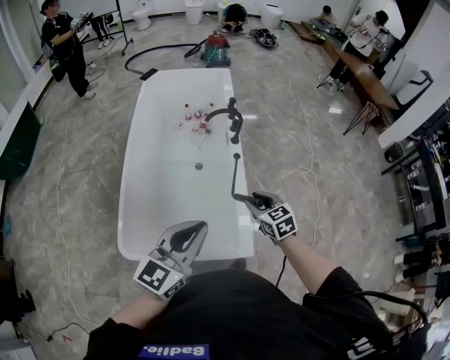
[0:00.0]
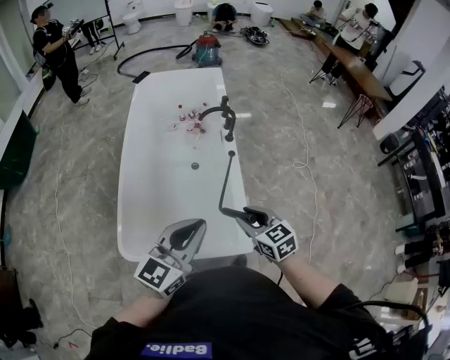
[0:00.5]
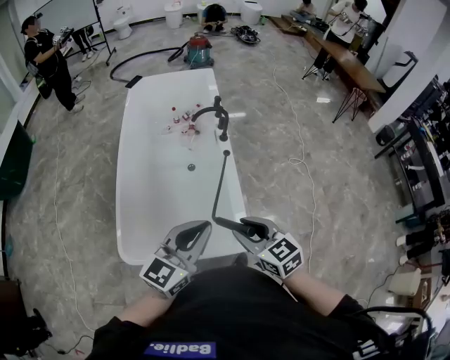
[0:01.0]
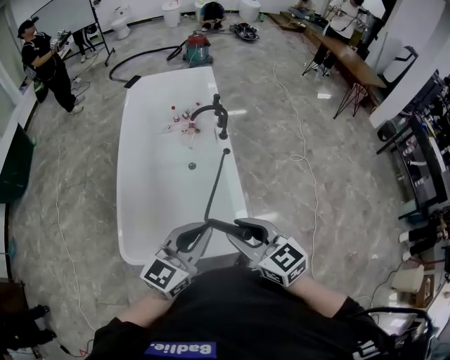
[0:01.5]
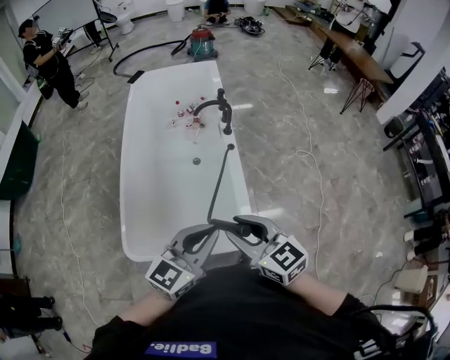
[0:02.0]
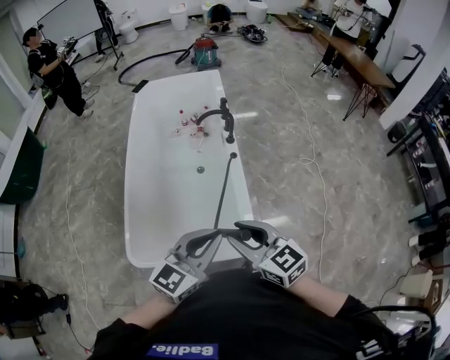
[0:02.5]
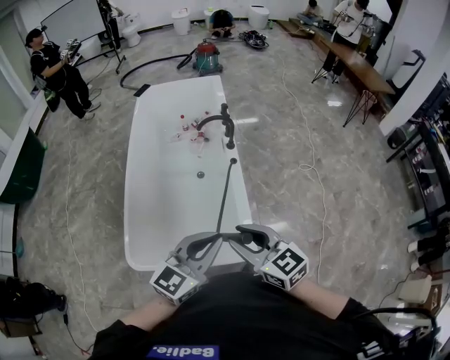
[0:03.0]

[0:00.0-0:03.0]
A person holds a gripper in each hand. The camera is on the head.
0:00.0 to 0:01.5: The right gripper moves upward and backward, some 20 cm.
0:01.5 to 0:03.0: The grippers stay close to where they were, moving slightly.

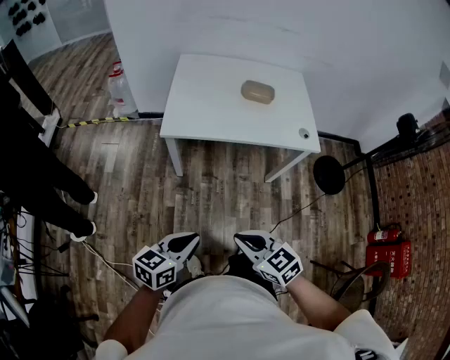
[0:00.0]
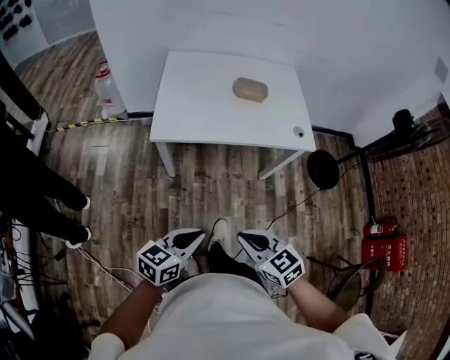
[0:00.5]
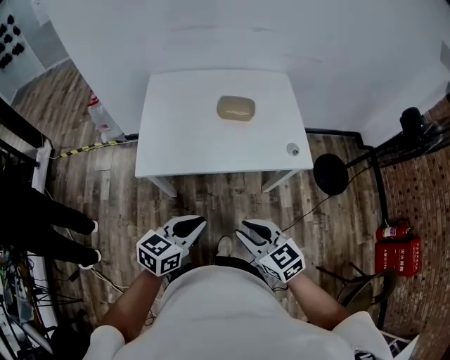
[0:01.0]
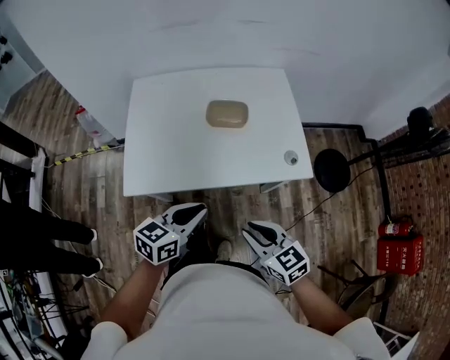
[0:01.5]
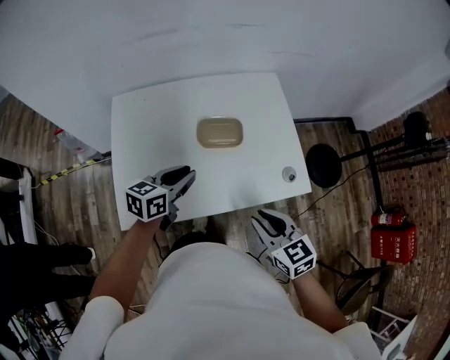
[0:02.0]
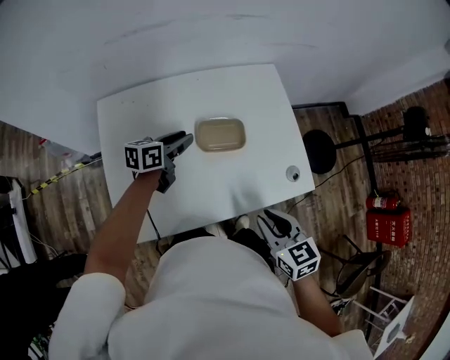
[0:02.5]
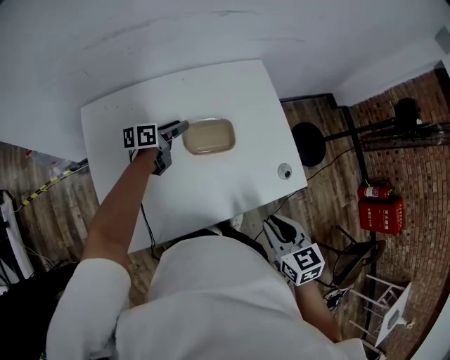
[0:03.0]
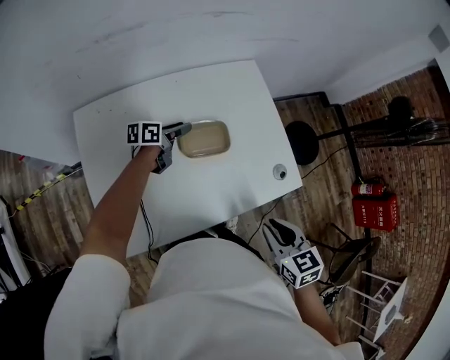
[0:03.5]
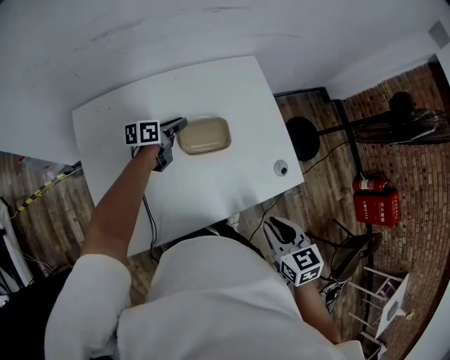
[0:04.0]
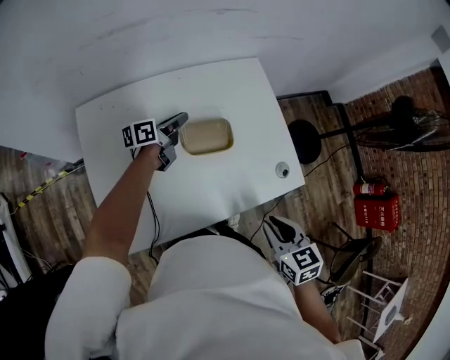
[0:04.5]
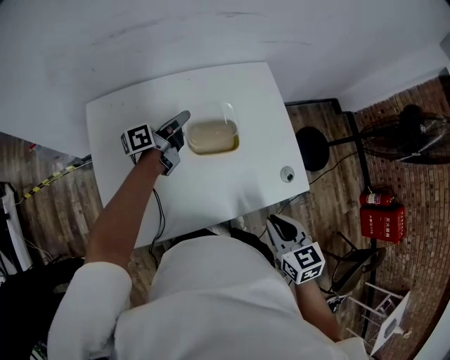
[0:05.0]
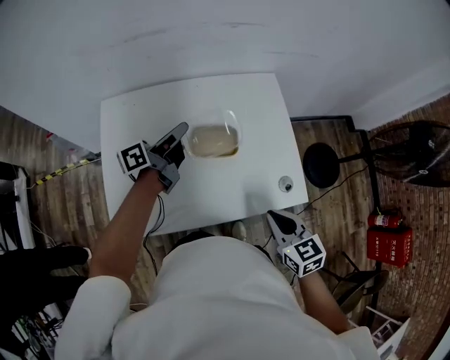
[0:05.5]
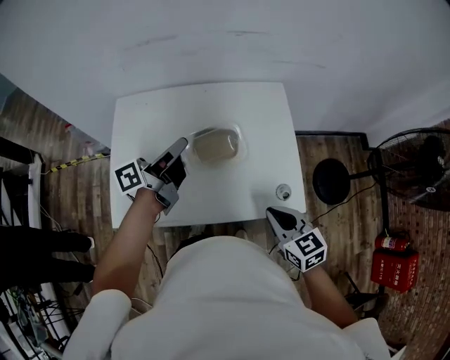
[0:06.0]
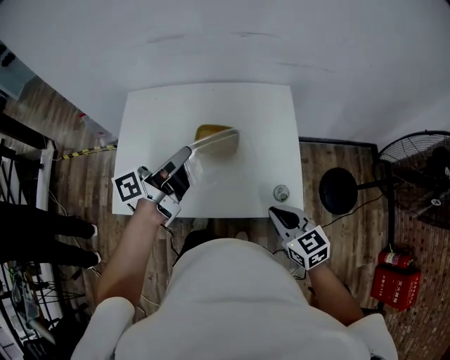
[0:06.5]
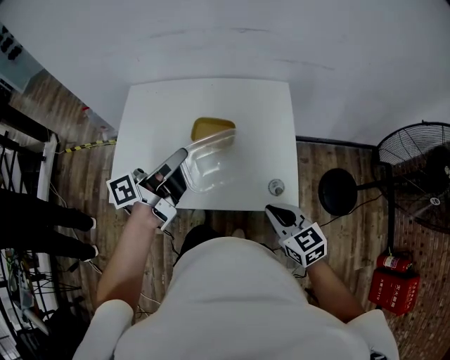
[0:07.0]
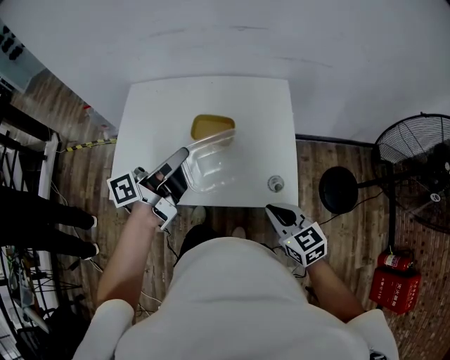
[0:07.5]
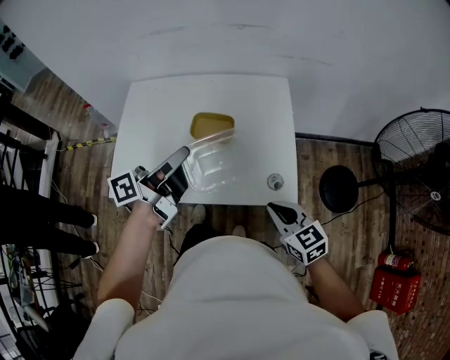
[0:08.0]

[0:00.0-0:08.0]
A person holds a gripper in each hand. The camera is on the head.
0:00.0 to 0:02.0: The pair of grippers is taken forward, approximately 50 cm. The right gripper changes its angle by roughly 30 degrees, and opens.
0:02.0 to 0:04.0: The left gripper shifts approximately 25 cm forward and downward, rotates roughly 20 degrees, and opens and closes again. Meanwhile the right gripper swivels about 20 degrees.
0:04.0 to 0:06.0: The left gripper heads upward, covering roughly 20 cm, and rotates about 40 degrees; the right gripper shifts by some 10 cm, and swivels approximately 30 degrees.
0:06.0 to 0:08.0: The right gripper shifts about 5 cm to the right; the left gripper travels backward and to the right by some 15 cm.

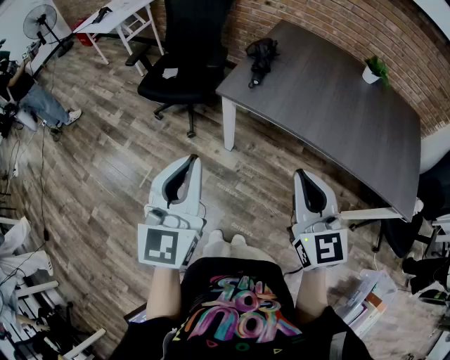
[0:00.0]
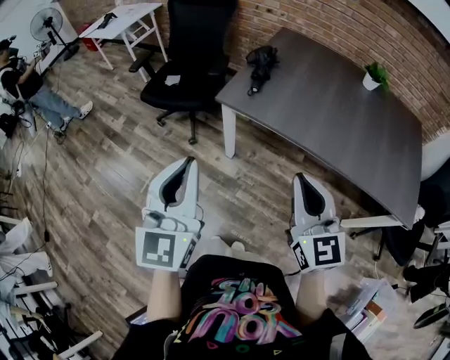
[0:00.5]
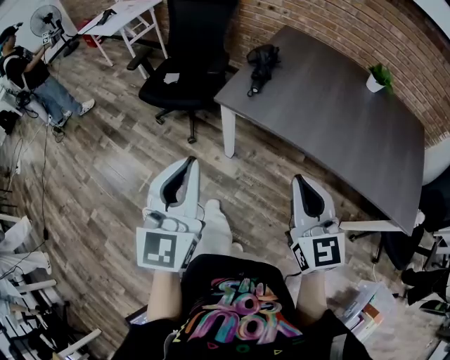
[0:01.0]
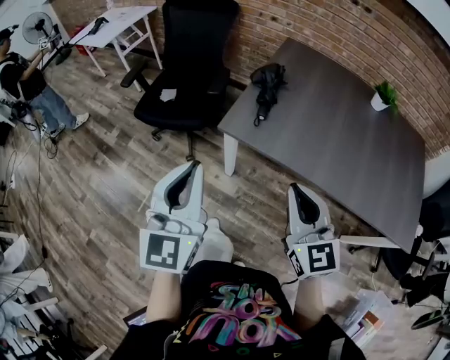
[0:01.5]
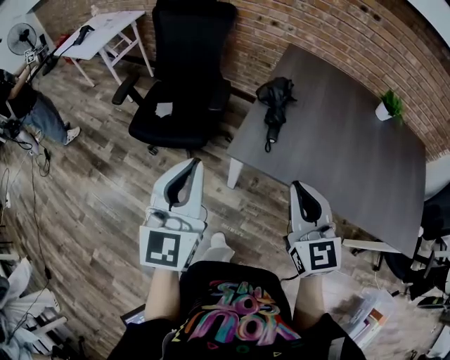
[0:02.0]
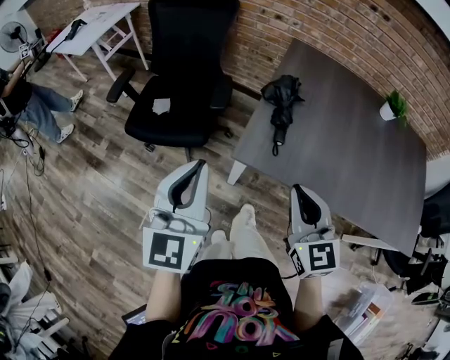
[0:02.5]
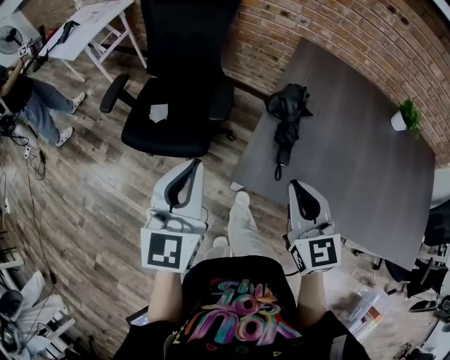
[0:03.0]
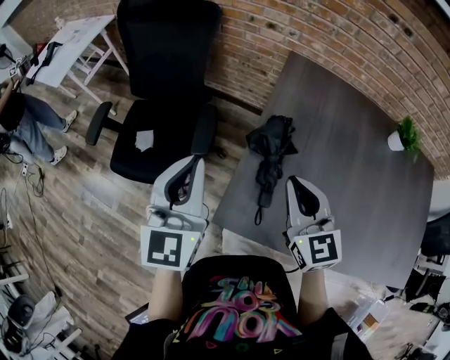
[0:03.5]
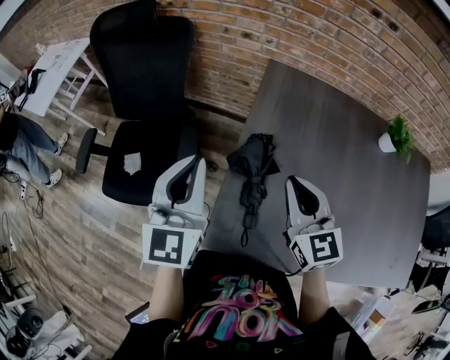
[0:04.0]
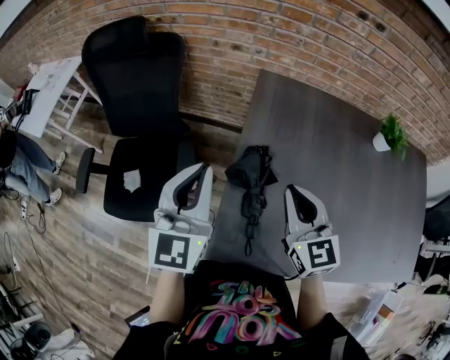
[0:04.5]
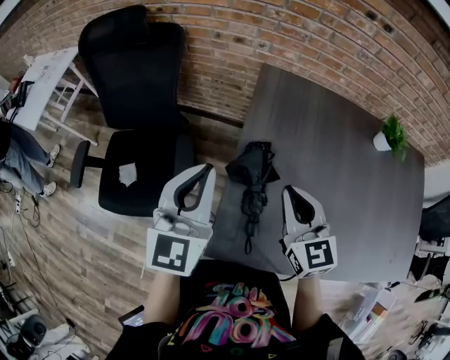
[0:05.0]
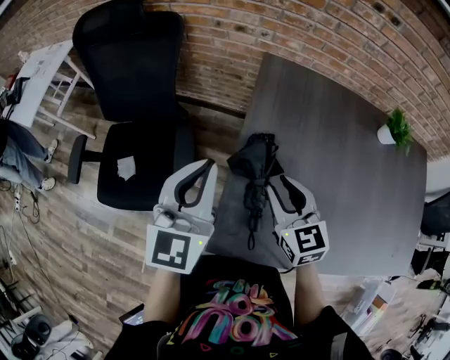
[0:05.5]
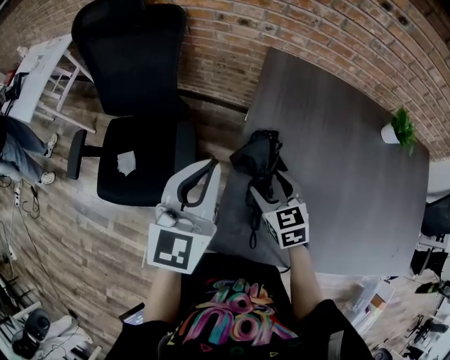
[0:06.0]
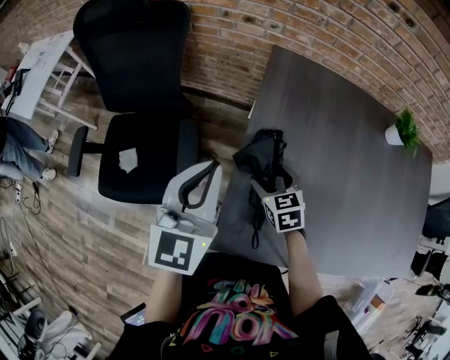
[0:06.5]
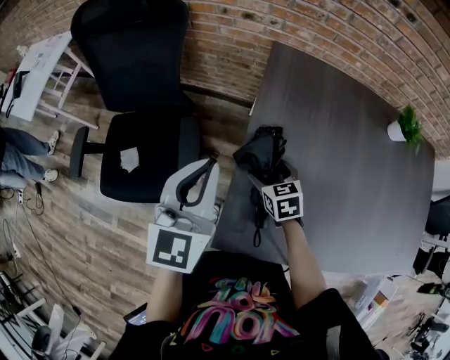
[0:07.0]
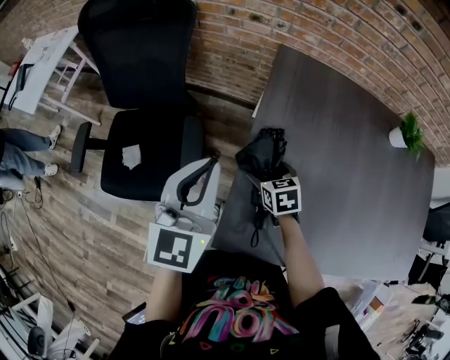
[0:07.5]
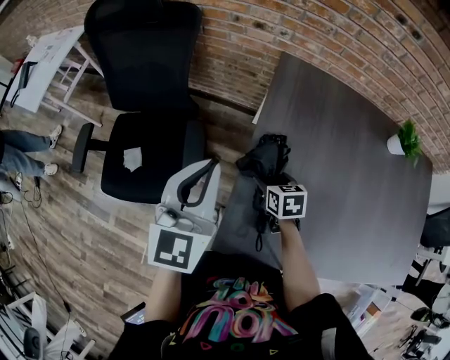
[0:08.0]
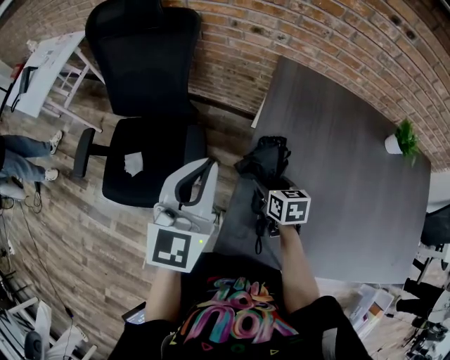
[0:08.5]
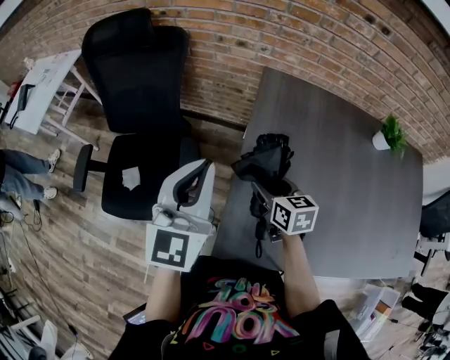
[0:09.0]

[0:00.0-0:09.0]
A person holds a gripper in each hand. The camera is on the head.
0:00.0 to 0:02.0: Both grippers travel together forward, about 25 cm.
0:02.0 to 0:04.5: The grippers both shift forward by some 35 cm.
0:04.5 to 0:07.0: The right gripper travels downward by roughly 25 cm, tips its fingers downward by about 30 degrees, and opens up; the left gripper goes some 5 cm downward.
0:07.0 to 0:09.0: The left gripper heads upward, covering roughly 5 cm. The right gripper is displaced upward by about 10 cm.

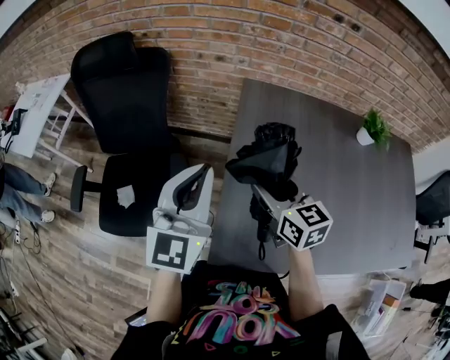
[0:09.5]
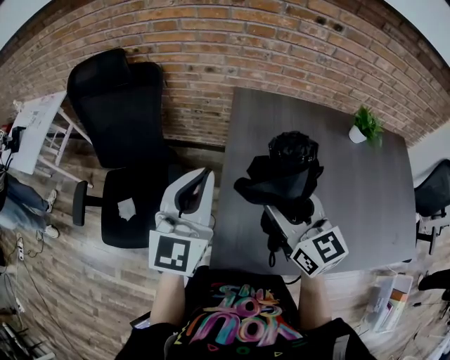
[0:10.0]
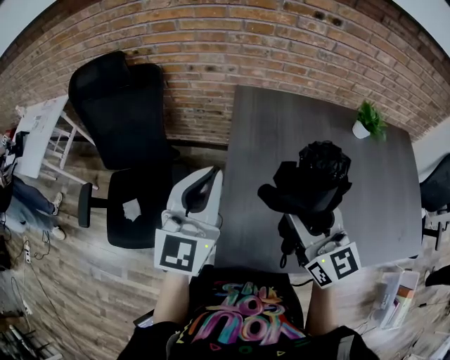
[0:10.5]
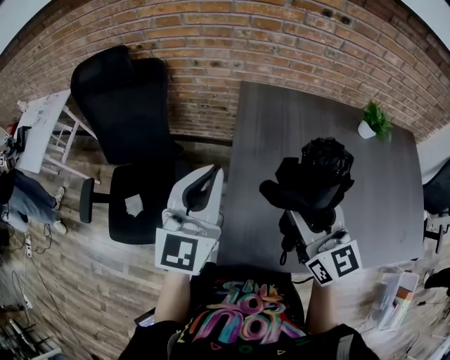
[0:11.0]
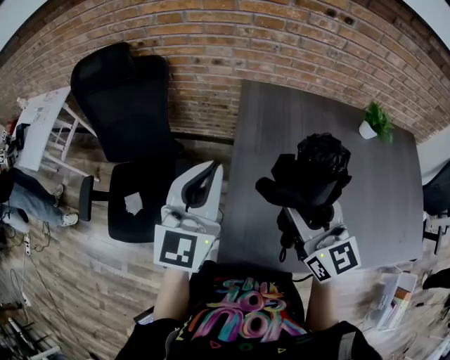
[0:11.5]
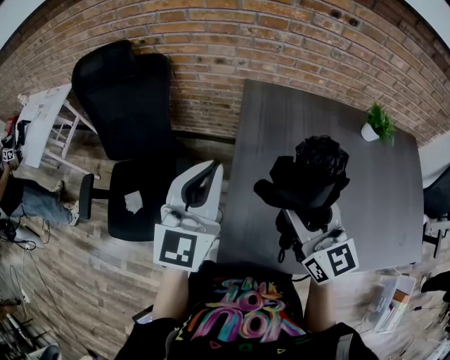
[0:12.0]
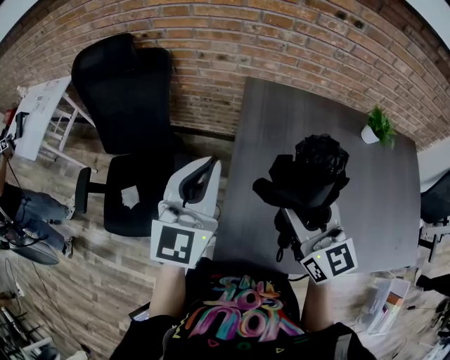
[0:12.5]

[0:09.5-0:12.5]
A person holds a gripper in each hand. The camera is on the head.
0:09.5 to 0:11.0: The right gripper goes approximately 15 cm upward, backward and to the right, and turns by about 20 degrees.
0:11.0 to 0:12.5: The grippers move only a little.

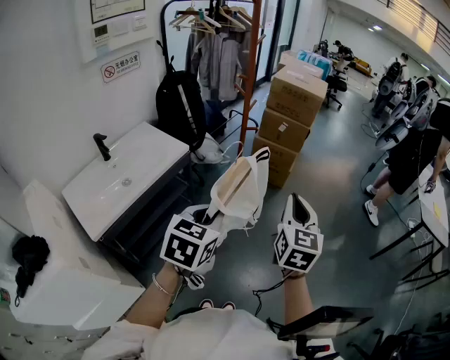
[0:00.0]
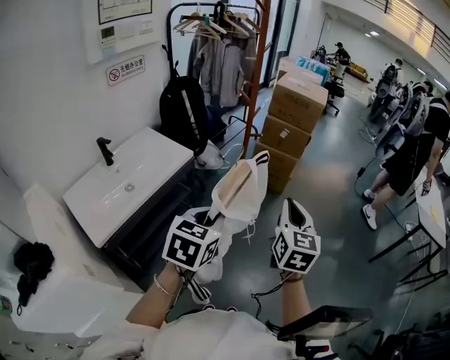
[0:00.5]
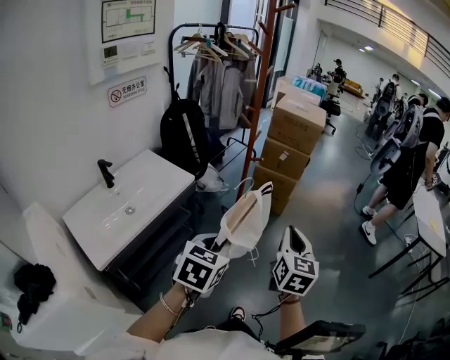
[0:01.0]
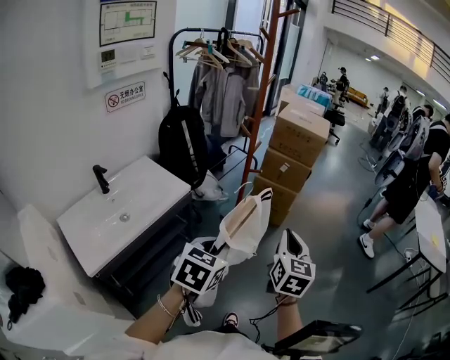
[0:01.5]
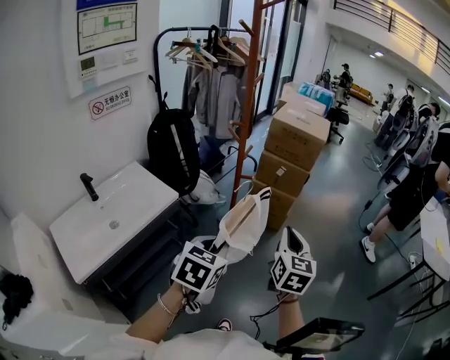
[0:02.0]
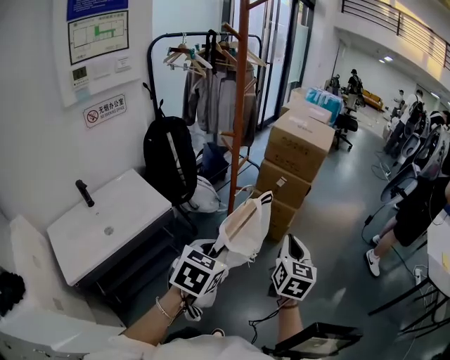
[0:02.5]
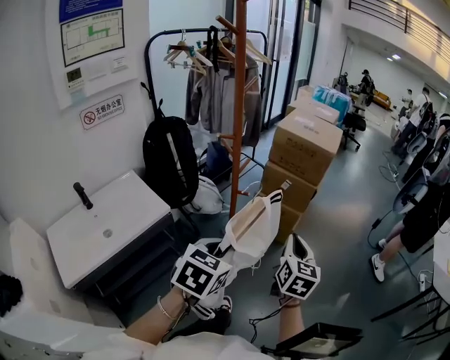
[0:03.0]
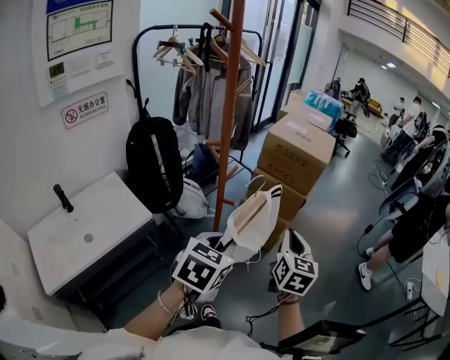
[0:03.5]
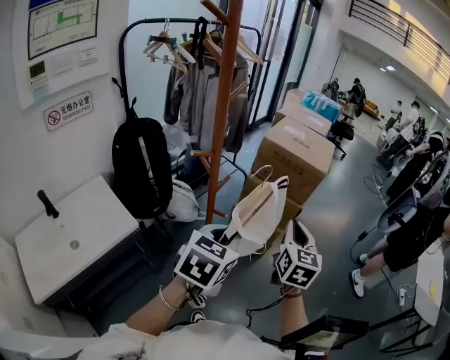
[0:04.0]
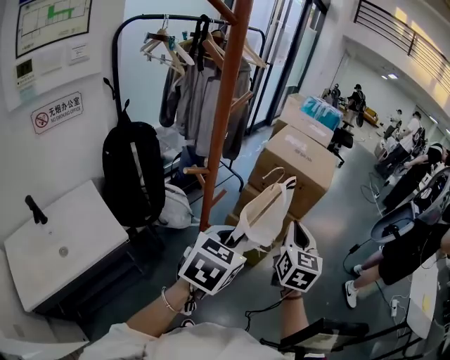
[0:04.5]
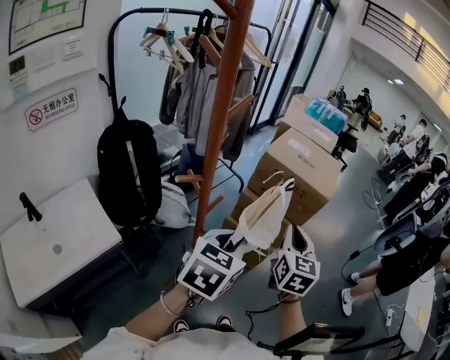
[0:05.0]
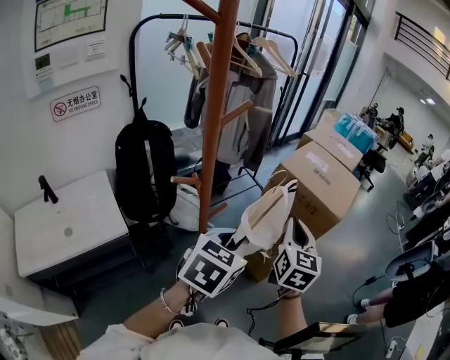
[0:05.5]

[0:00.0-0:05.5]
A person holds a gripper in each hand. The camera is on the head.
0:00.0 to 0:02.0: Both grippers travel together forward, some 15 cm.
0:02.0 to 0:03.5: The grippers both shift forward by approximately 20 cm.
0:03.5 to 0:05.5: The grippers both shift forward by approximately 25 cm.
